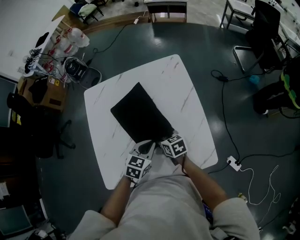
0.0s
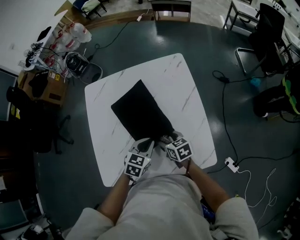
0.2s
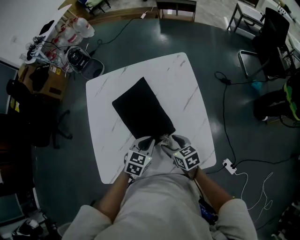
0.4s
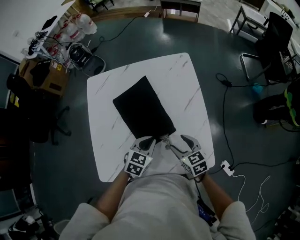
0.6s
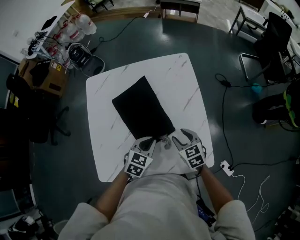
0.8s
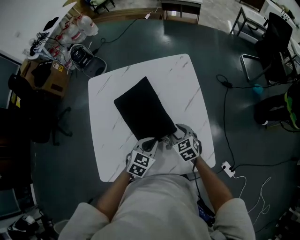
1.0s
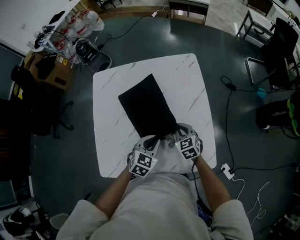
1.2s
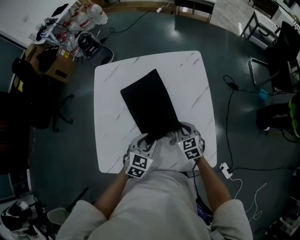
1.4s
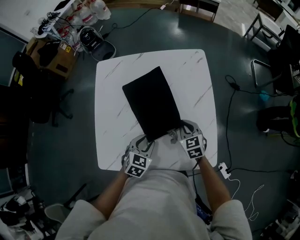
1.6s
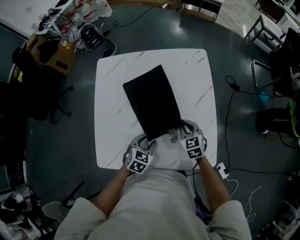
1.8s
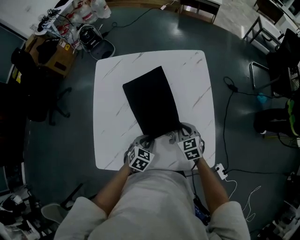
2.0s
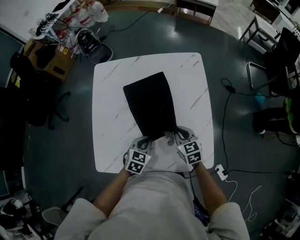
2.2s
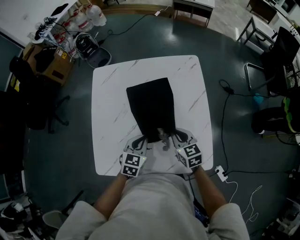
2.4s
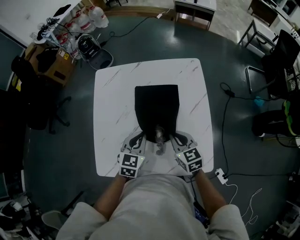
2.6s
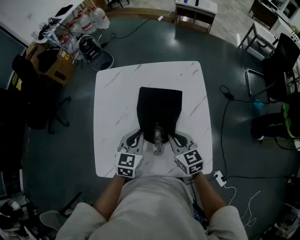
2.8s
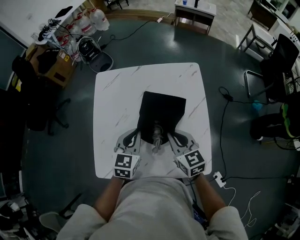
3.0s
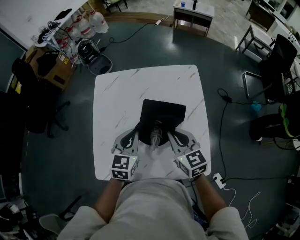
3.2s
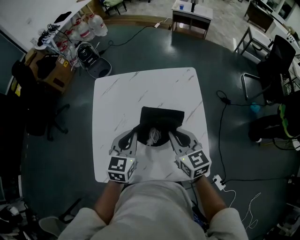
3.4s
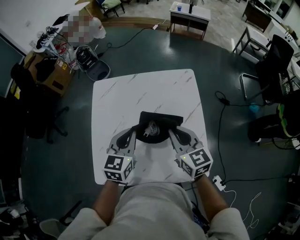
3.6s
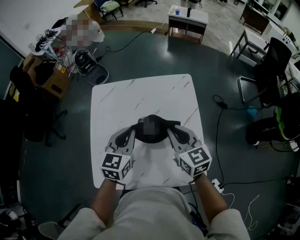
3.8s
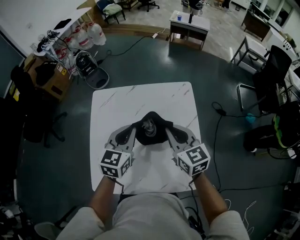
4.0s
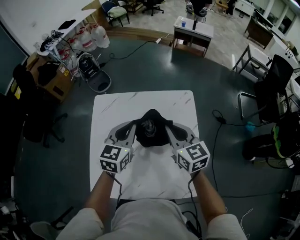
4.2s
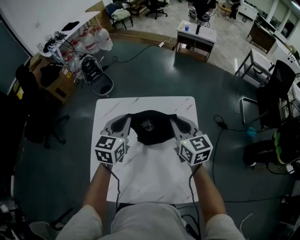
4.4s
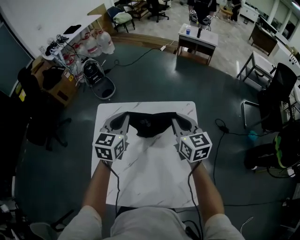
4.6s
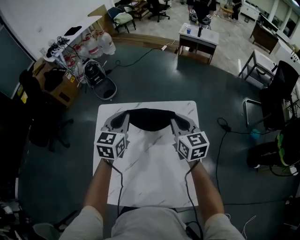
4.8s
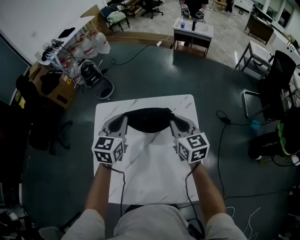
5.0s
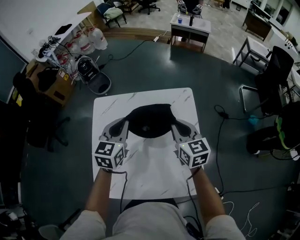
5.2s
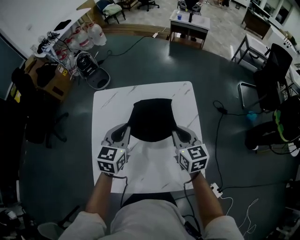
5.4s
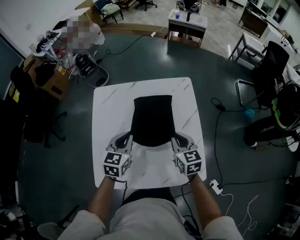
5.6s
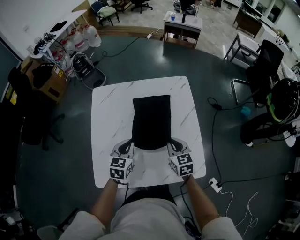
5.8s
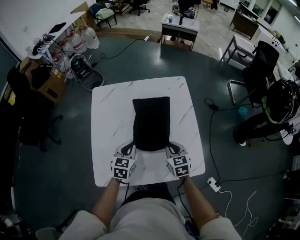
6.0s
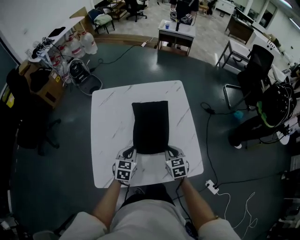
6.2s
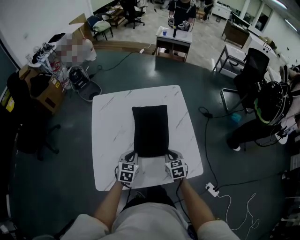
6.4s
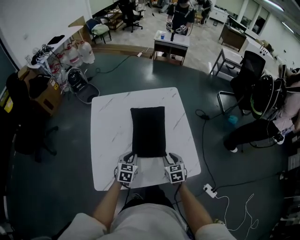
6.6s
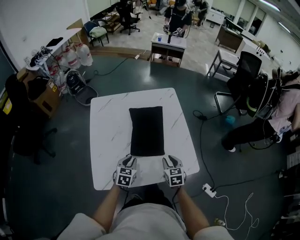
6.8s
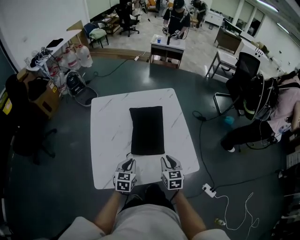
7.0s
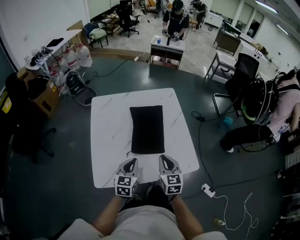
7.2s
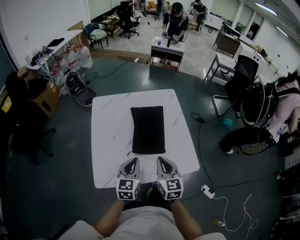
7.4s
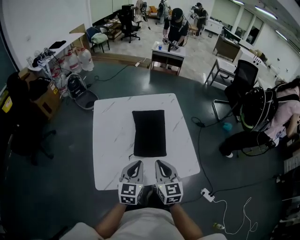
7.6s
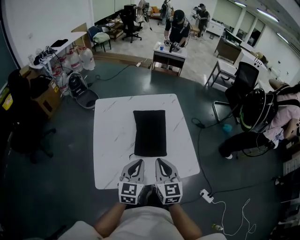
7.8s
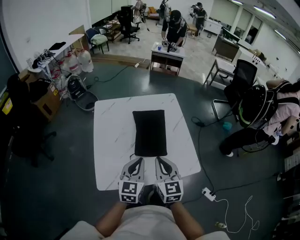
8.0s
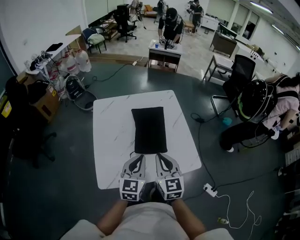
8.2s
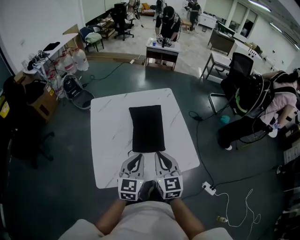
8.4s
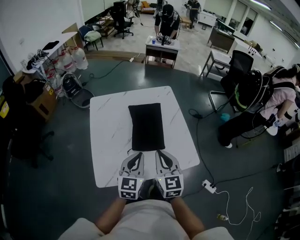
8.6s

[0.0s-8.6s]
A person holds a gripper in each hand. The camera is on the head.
0.0s to 1.4s: The right gripper moves to the right, some 5 cm, rotates roughly 30 degrees, and closes, while the left gripper opens up.
1.4s to 2.8s: The left gripper is displaced upward and forward by some 10 cm, and closes. The right gripper moves upward, approximately 10 cm.
2.8s to 4.4s: The two grippers go about 25 cm forward and upward.
4.4s to 5.8s: Both grippers travel together backward and downward, about 25 cm.
5.8s to 7.2s: Both grippers travel together backward, some 15 cm.
7.2s to 8.6s: The two grippers go about 10 cm upward.

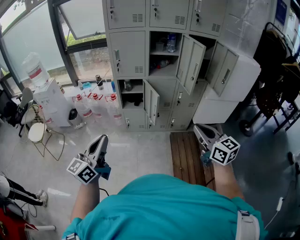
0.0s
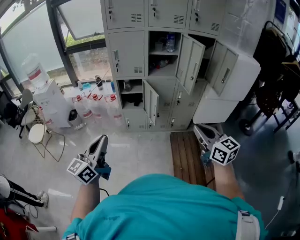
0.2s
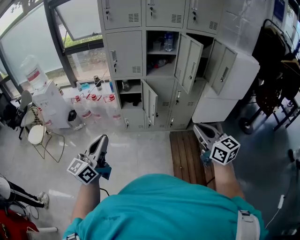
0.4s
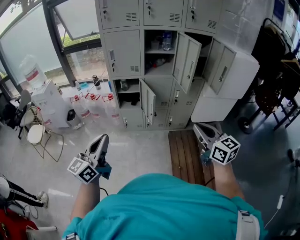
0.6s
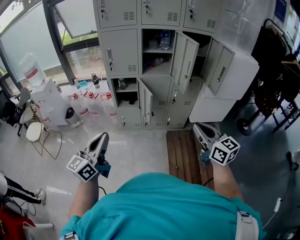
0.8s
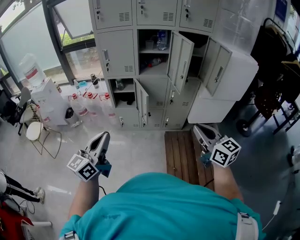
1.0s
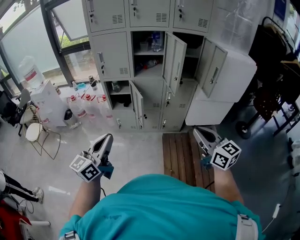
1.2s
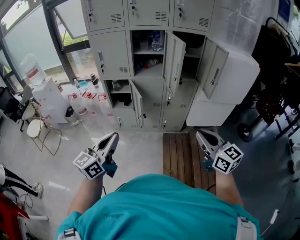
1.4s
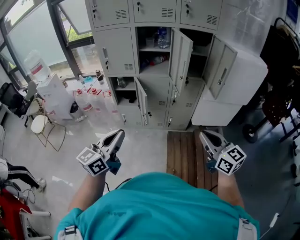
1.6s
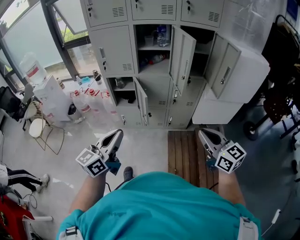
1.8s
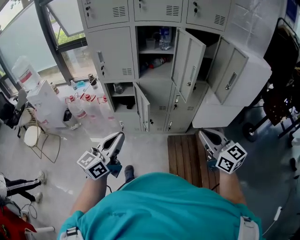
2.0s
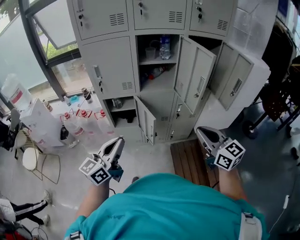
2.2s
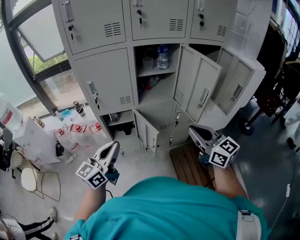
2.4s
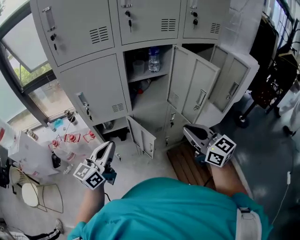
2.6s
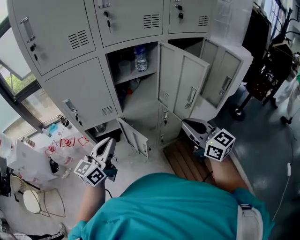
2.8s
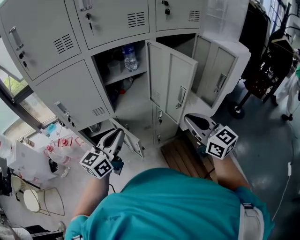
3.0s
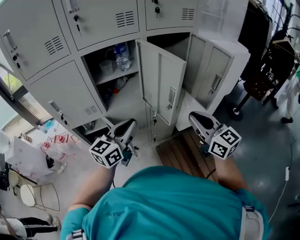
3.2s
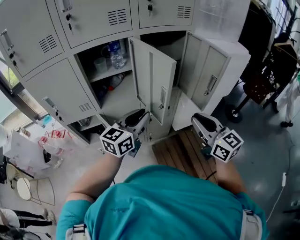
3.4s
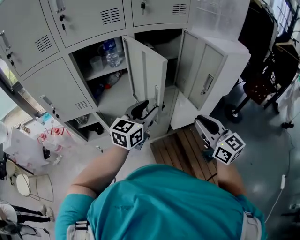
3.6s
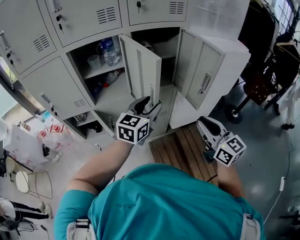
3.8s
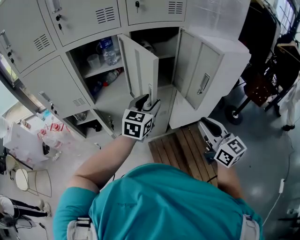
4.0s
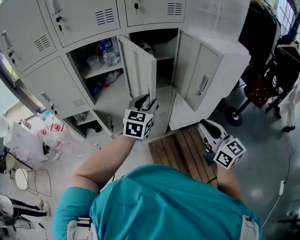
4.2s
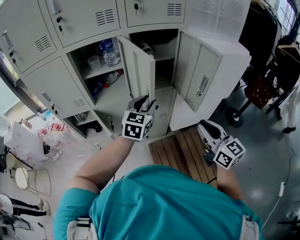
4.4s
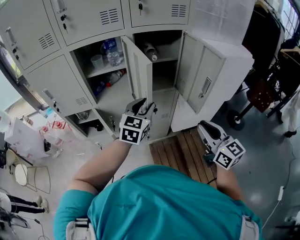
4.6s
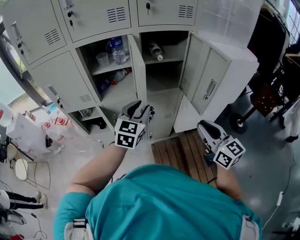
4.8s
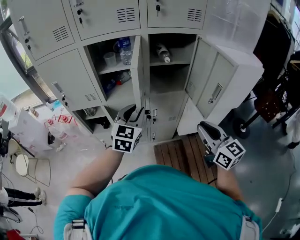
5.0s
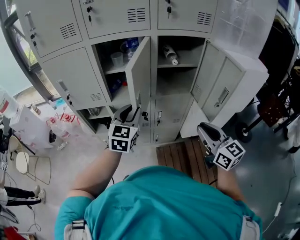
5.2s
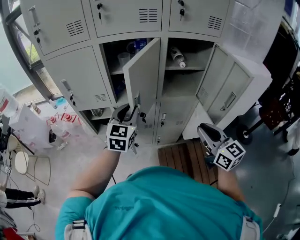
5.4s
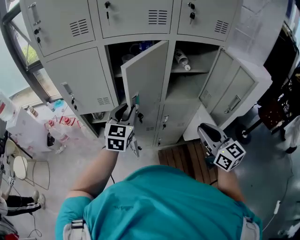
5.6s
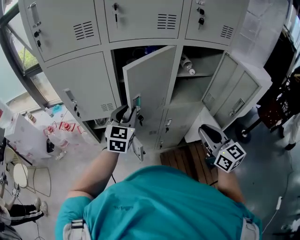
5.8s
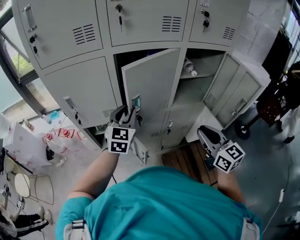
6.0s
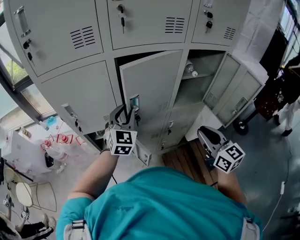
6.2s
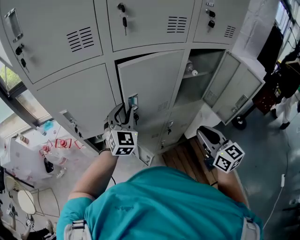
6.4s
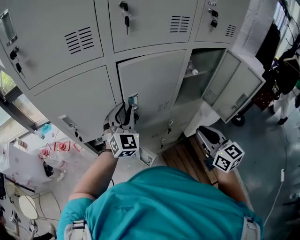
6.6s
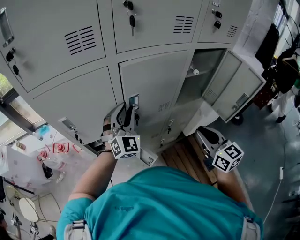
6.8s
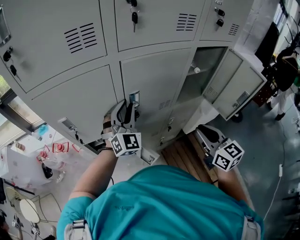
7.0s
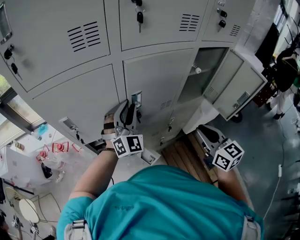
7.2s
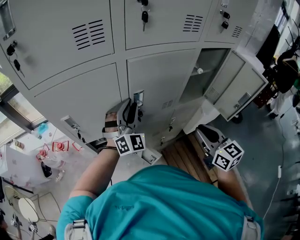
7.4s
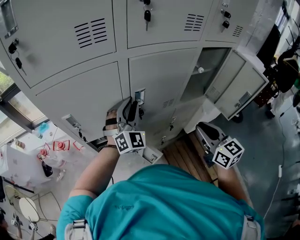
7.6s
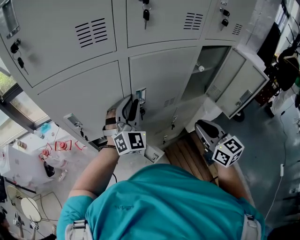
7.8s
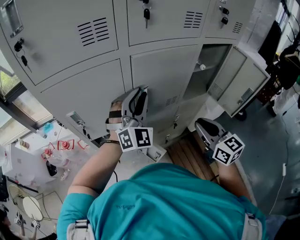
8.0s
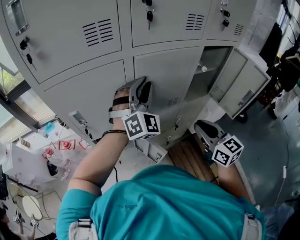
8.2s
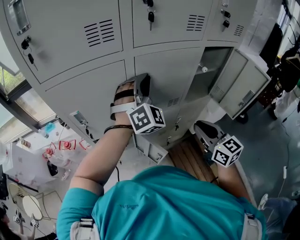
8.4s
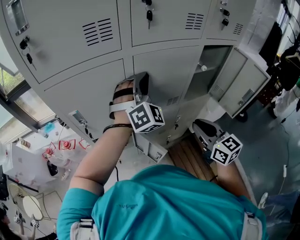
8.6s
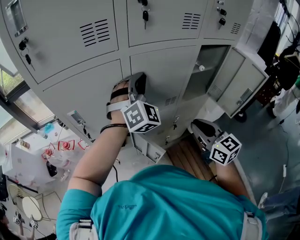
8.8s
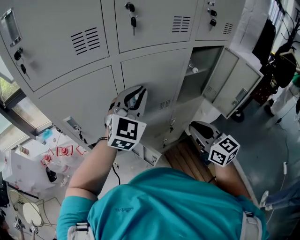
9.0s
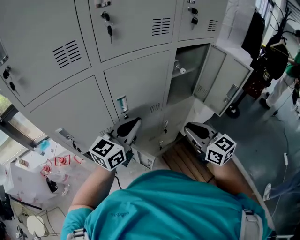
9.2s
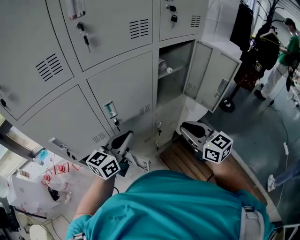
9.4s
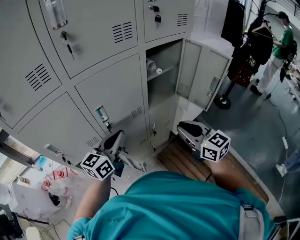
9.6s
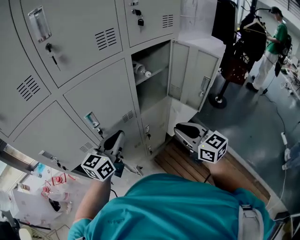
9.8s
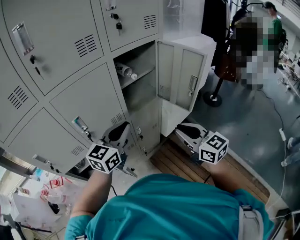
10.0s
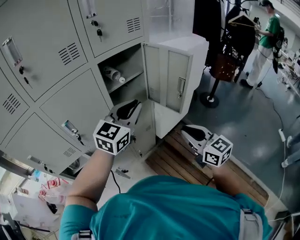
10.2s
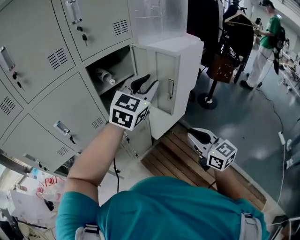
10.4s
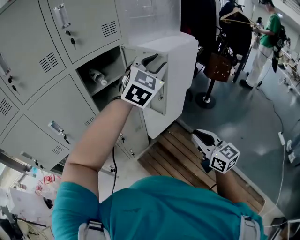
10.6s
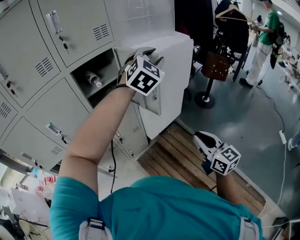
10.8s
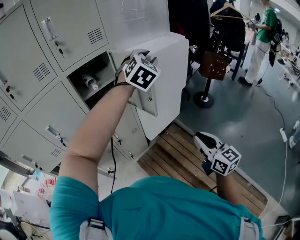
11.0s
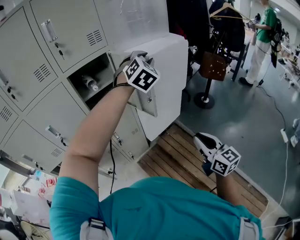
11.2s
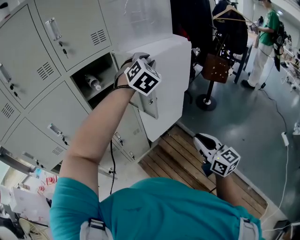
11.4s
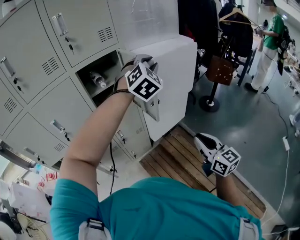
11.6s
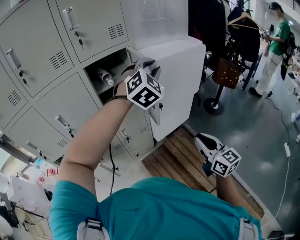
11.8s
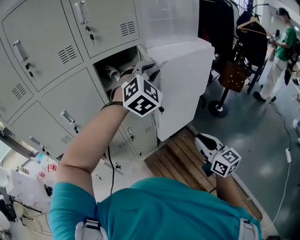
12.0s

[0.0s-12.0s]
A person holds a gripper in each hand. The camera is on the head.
0.0s to 1.6s: Both grippers move to the right, approximately 20 cm.
1.6s to 3.0s: The left gripper heads forward, covering some 40 cm, and rotates about 20 degrees; the right gripper travels forward and to the left by approximately 35 cm.
3.0s to 4.4s: The left gripper moves to the right and forward, approximately 30 cm, rotates approximately 30 degrees, and opens, while the right gripper moves to the right, approximately 20 cm.
4.4s to 6.0s: The left gripper shifts approximately 30 cm to the left. The right gripper moves to the left and forward, roughly 25 cm.
6.0s to 7.6s: The left gripper heads forward, covering about 10 cm, and swivels about 40 degrees. The right gripper moves to the left and forward, some 10 cm.
7.6s to 9.0s: The left gripper shifts roughly 10 cm upward, and rotates approximately 30 degrees.
9.0s to 10.4s: Both grippers travel together to the right, about 40 cm. The left gripper turns by roughly 30 degrees.
10.4s to 12.0s: The right gripper shifts approximately 5 cm to the right; the left gripper moves approximately 15 cm to the right and comes back, and rotates about 40 degrees.

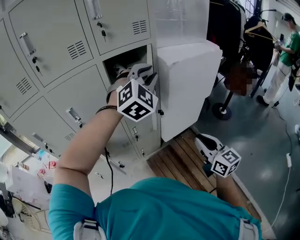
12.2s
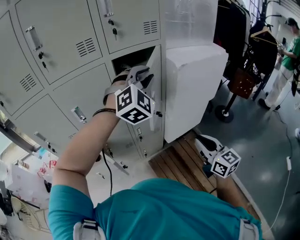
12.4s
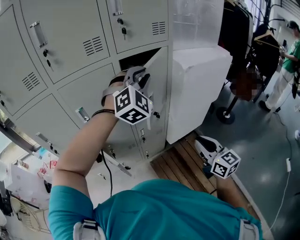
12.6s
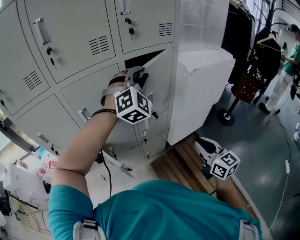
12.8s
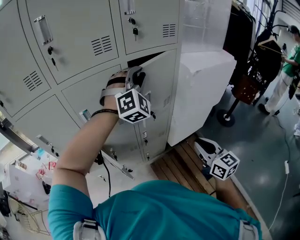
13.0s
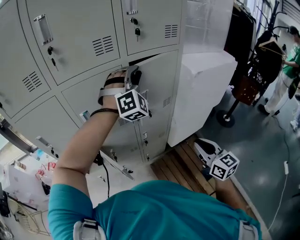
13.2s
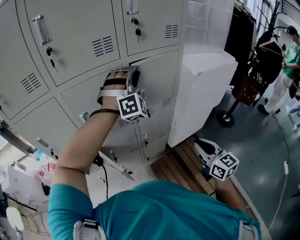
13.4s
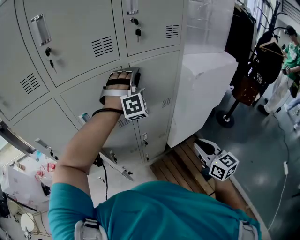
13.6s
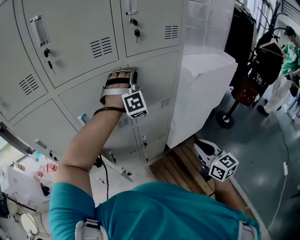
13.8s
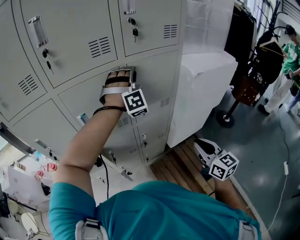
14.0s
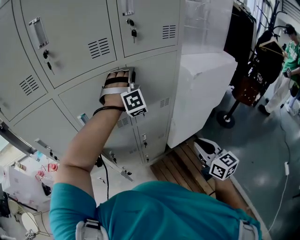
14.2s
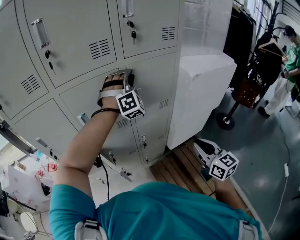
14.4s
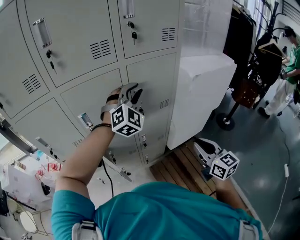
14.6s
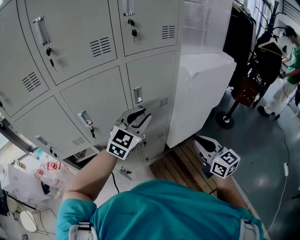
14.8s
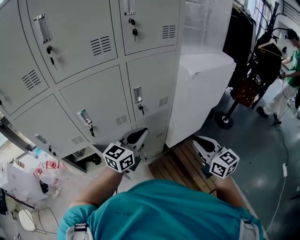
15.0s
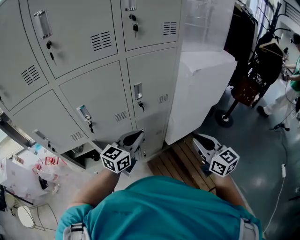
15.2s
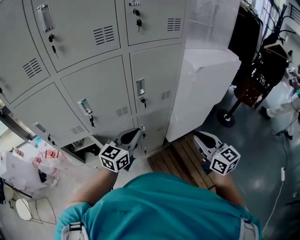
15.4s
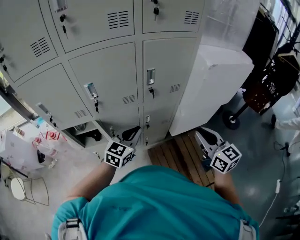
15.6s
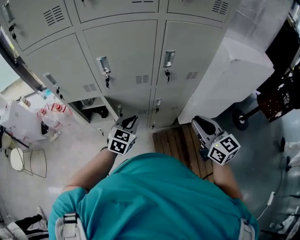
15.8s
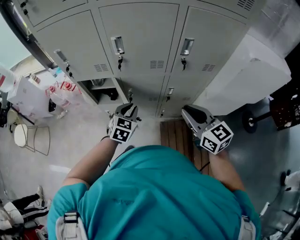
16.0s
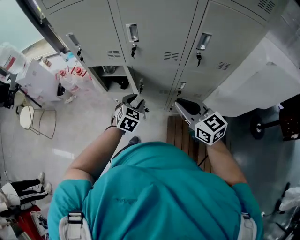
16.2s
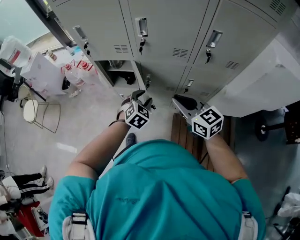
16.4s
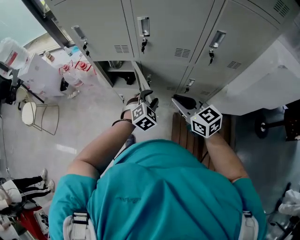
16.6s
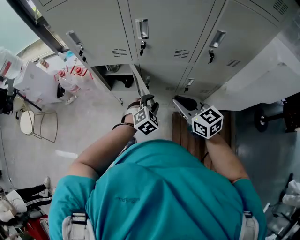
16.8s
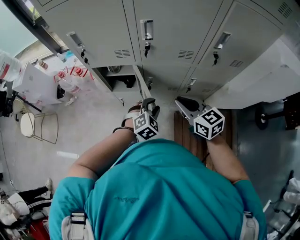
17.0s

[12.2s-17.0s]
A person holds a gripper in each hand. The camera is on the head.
12.2s to 13.8s: The right gripper goes about 15 cm to the left and forward. The left gripper travels forward and to the left by roughly 25 cm, and swivels roughly 40 degrees.
13.8s to 15.4s: The left gripper travels backward and downward by roughly 30 cm, rolls counterclockwise, seen from behind, by about 90 degrees, and closes up.
15.4s to 17.0s: The right gripper ends up roughly 35 cm from where it was, and changes its angle by some 40 degrees, while the left gripper moves downward, some 25 cm, tips its fingers downward by roughly 40 degrees, and opens.
